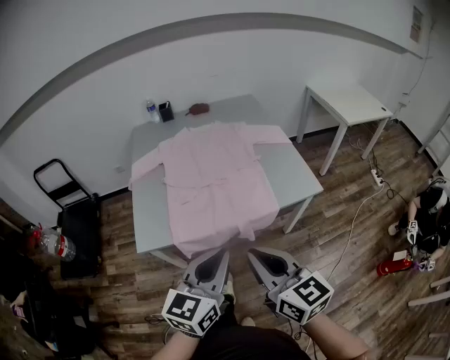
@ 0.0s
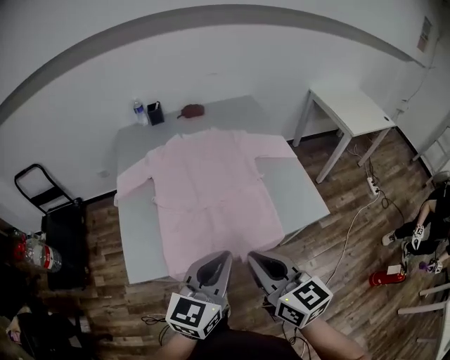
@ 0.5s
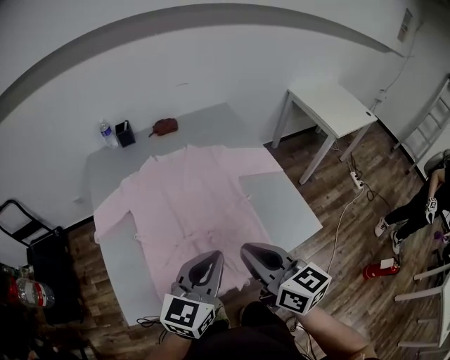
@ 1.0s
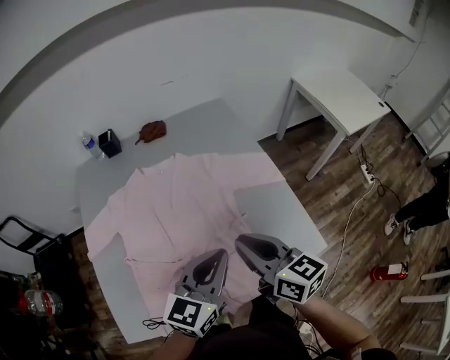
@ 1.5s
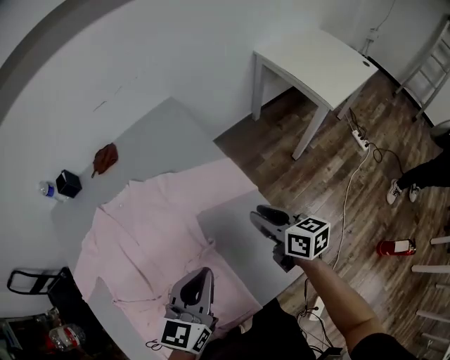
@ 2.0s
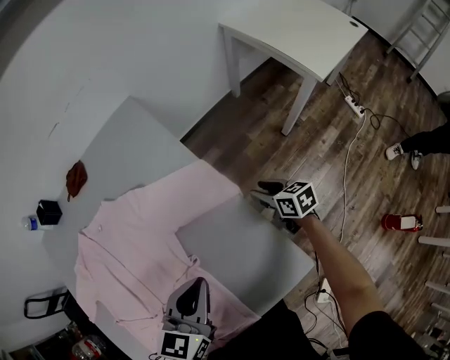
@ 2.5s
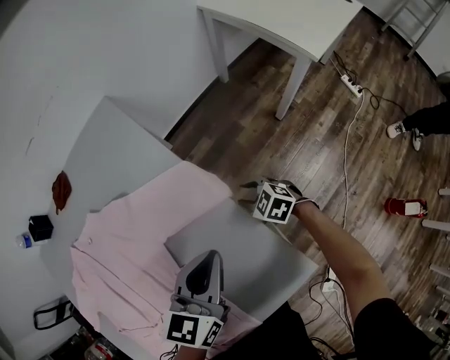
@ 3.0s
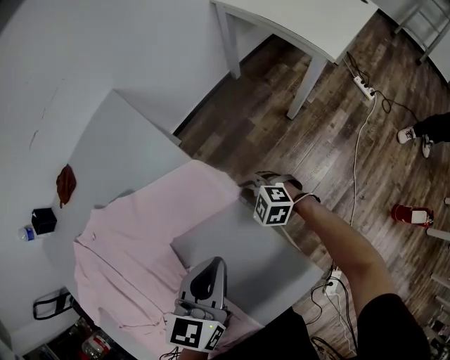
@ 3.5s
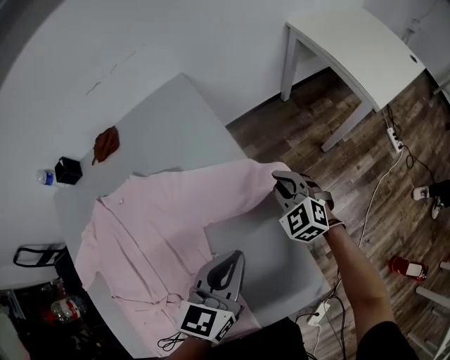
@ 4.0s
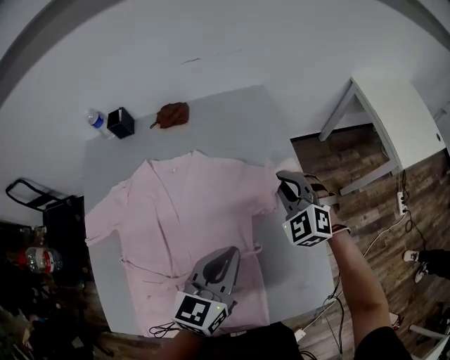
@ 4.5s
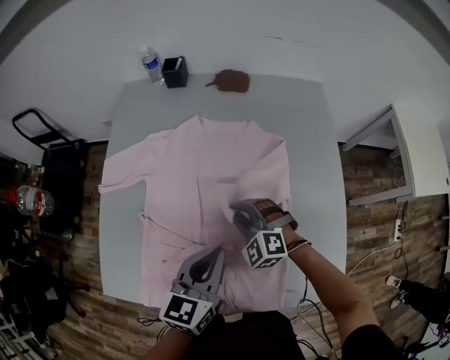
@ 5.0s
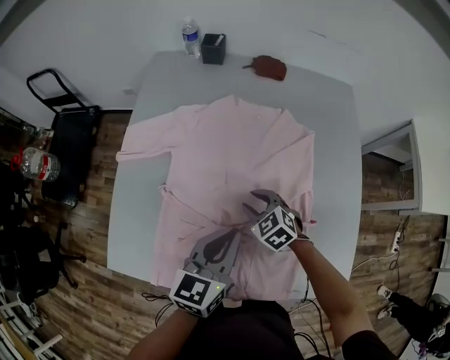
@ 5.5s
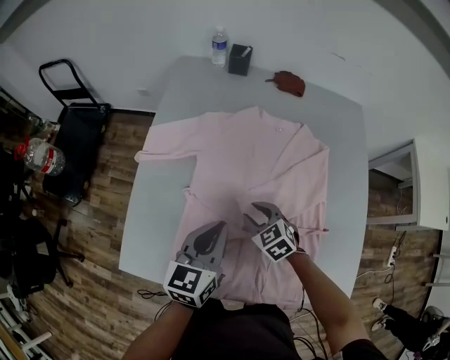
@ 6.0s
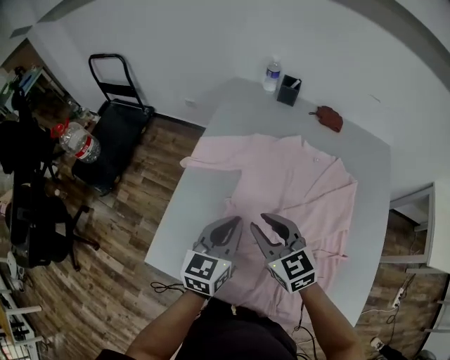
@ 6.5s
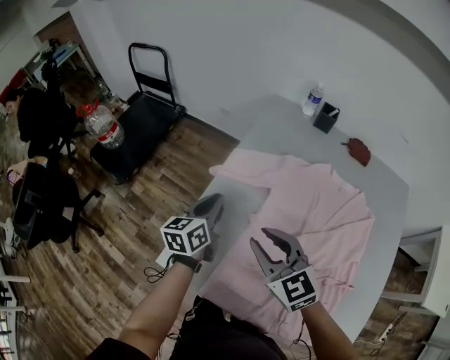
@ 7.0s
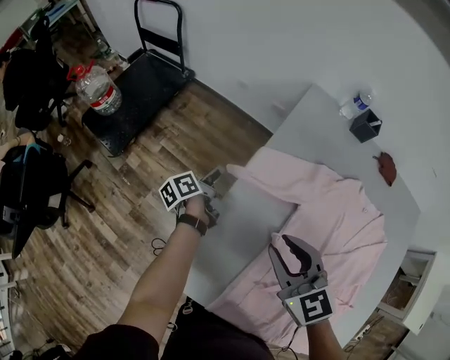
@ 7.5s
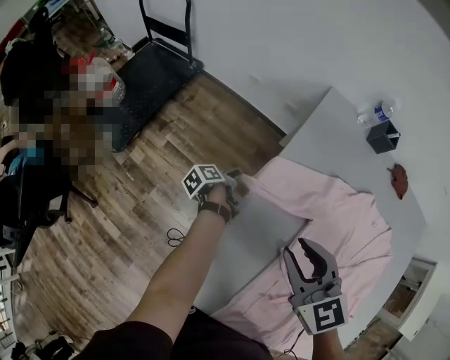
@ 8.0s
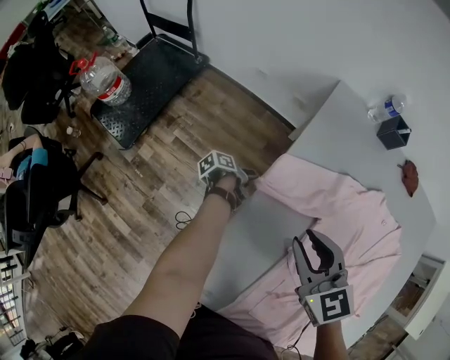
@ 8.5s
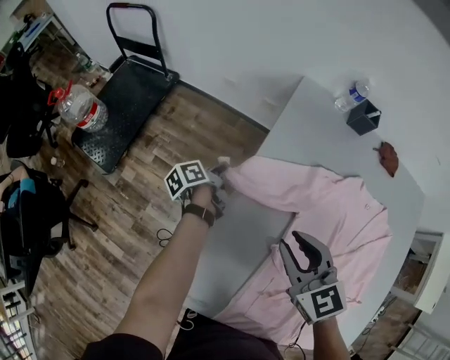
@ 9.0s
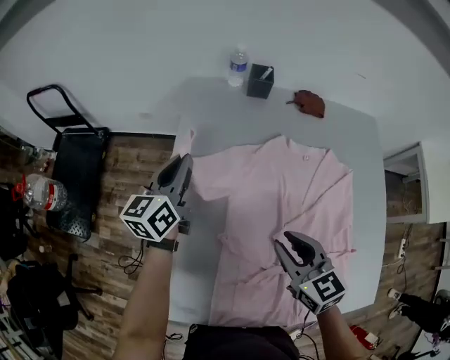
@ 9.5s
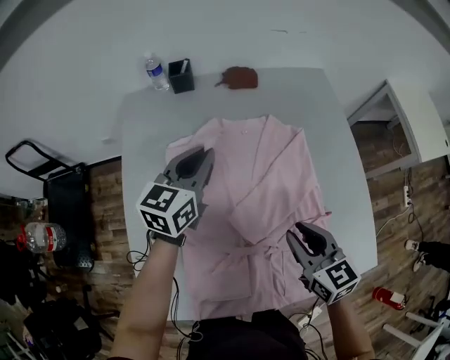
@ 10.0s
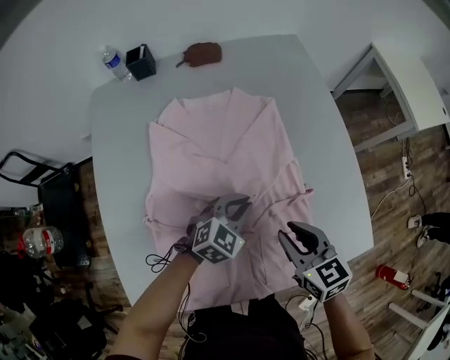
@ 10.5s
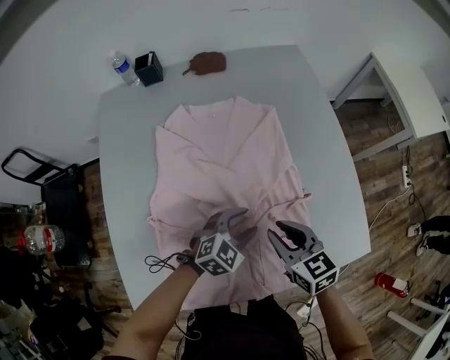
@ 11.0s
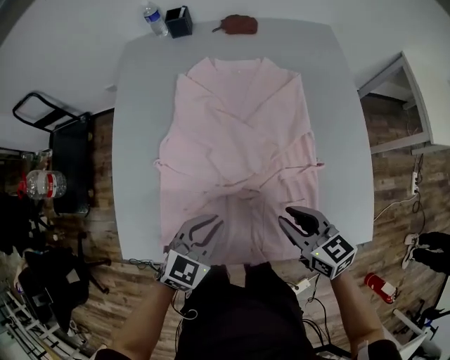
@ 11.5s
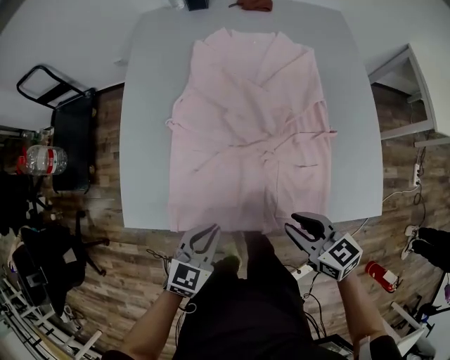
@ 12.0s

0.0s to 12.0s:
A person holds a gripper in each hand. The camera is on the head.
0.0s to 2.0s: Both grippers are carried forward, some 60 cm. The right gripper turns by approximately 30 degrees.
2.0s to 4.0s: The left gripper heads forward, to the right and downward, covering approximately 15 cm. The right gripper goes roughly 20 cm forward and downward, and rotates around the line of its fingers by roughly 60 degrees, counterclockwise from behind.
4.0s to 6.0s: Both grippers are carried roughly 50 cm. The left gripper swivels approximately 40 degrees. The right gripper swivels about 40 degrees, and opens.
6.0s to 8.0s: The right gripper moves to the left, upward and forward, roughly 35 cm, and turns by some 20 degrees. Meanwhile the left gripper heads downward, forward and to the left, covering roughly 50 cm, rotates around the line of its fingers by some 90 degrees, counterclockwise from behind, and opens.
8.0s to 10.0s: The left gripper ends up approximately 50 cm from where it was, rolls clockwise, seen from behind, by about 100 degrees, and closes. Meanwhile the right gripper changes place by about 40 cm, and rotates approximately 50 degrees.
10.0s to 12.0s: The left gripper moves some 50 cm, changes its angle by about 20 degrees, and opens, then closes again. The right gripper shifts by some 25 cm, and swivels roughly 30 degrees.

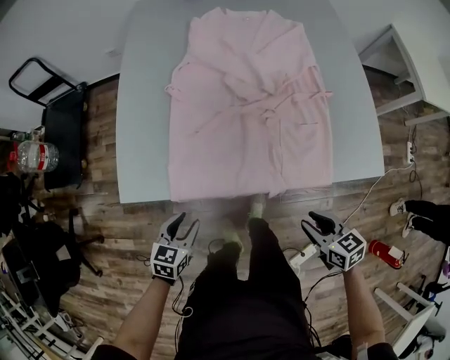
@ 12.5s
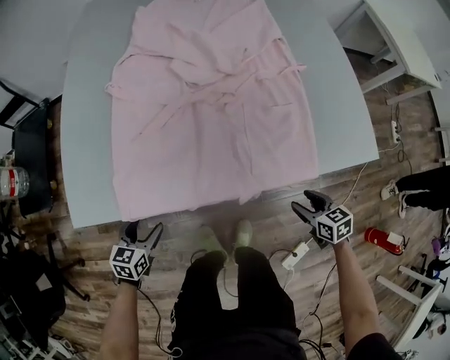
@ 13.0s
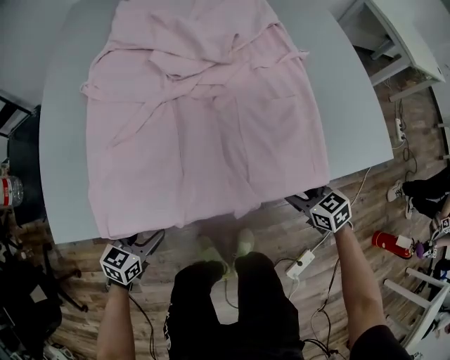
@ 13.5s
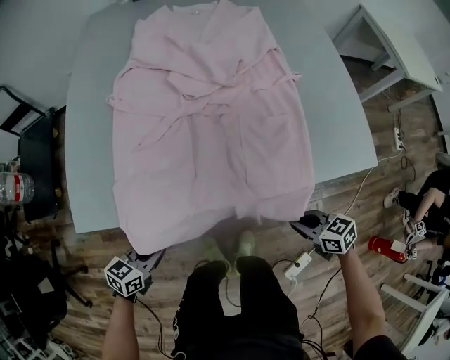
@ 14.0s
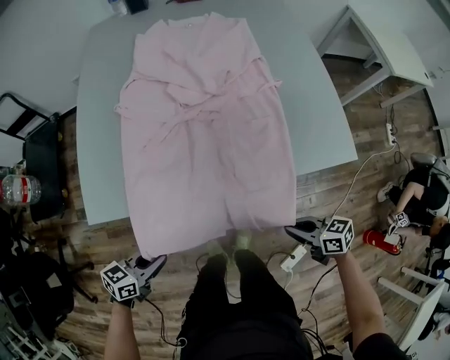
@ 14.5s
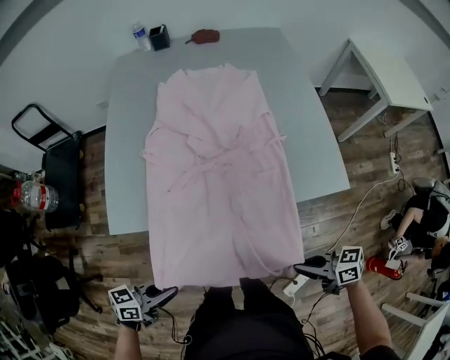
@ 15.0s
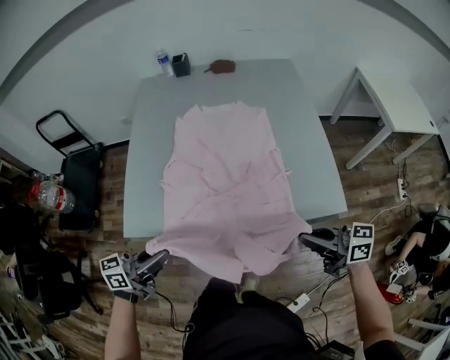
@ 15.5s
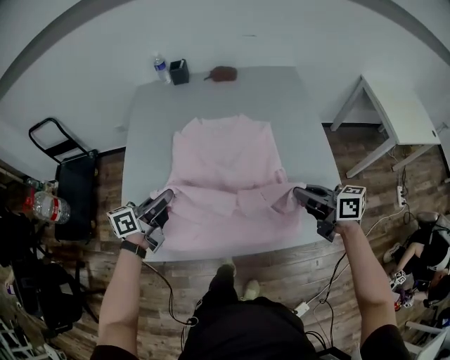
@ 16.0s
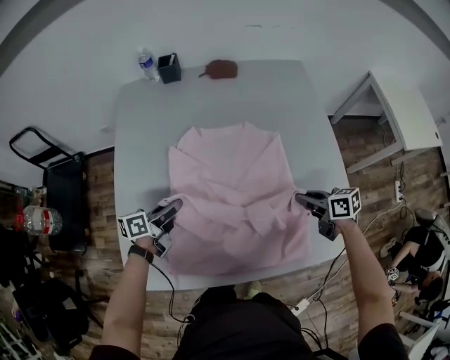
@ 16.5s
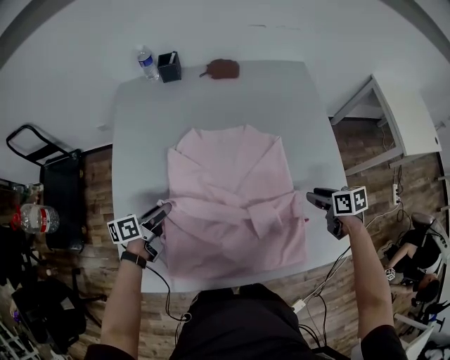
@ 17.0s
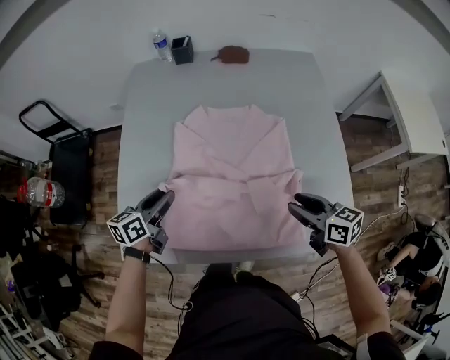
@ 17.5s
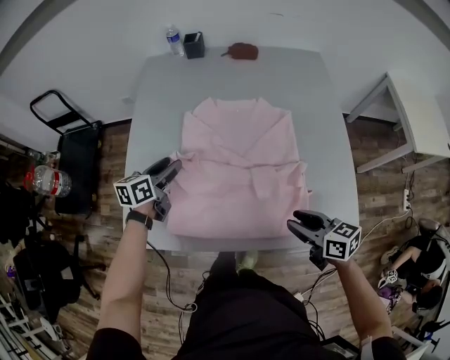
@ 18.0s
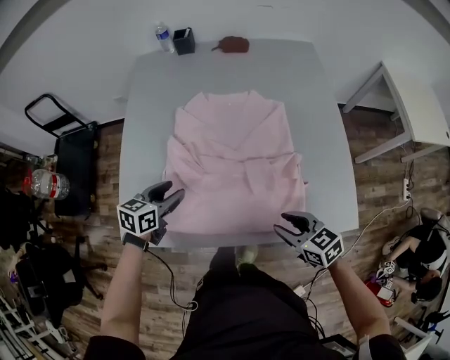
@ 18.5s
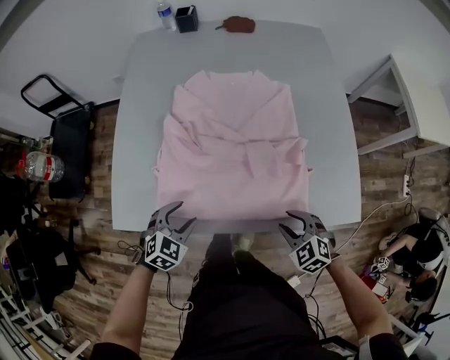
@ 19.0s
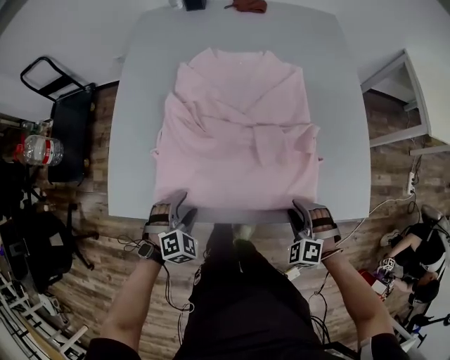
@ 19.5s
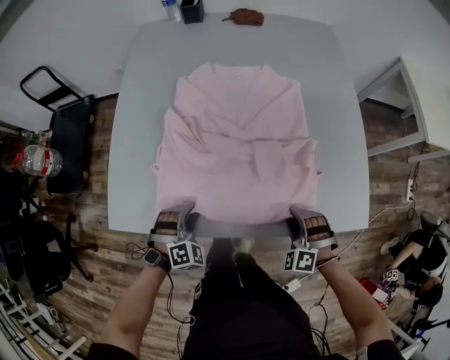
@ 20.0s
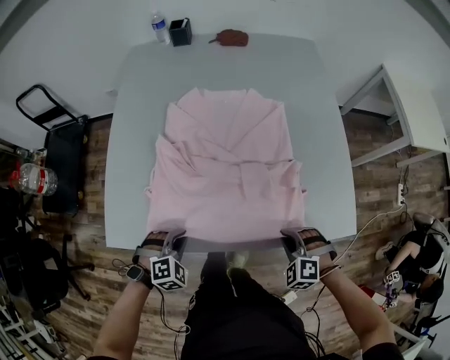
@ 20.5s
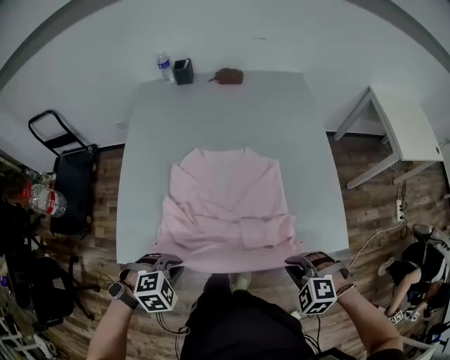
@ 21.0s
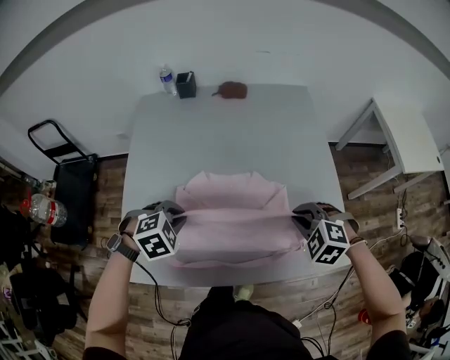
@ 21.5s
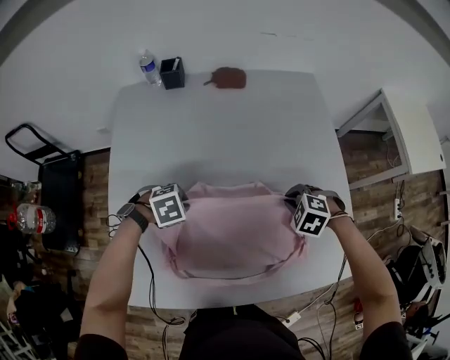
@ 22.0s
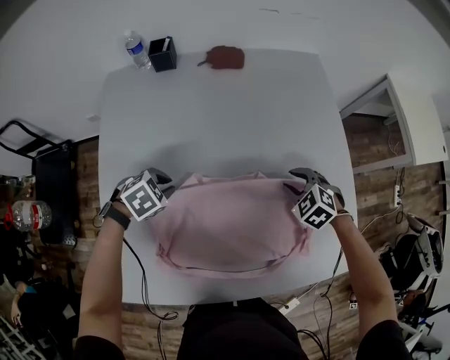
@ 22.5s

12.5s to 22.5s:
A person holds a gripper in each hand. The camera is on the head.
12.5s to 14.5s: The left gripper travels downward and back again, about 15 cm each way, turns by some 30 degrees, and closes. The right gripper goes downward and returns, some 20 cm each way, turns by some 20 degrees, and closes up.
14.5s to 16.5s: The right gripper moves approximately 40 cm. The left gripper ends up about 40 cm from where it was, and rotates some 30 degrees.
16.5s to 18.5s: The right gripper heads backward and to the left, covering about 20 cm, changes its angle by some 30 degrees, and opens its fingers; the left gripper swings forward and backward, approximately 10 cm each way, with 2 reversals, turns by approximately 30 degrees, and opens its fingers.
18.5s to 20.5s: The right gripper travels downward by some 10 cm, rolls counterclockwise, seen from behind, by some 50 degrees, and closes up. The left gripper shifts about 20 cm backward and downward, twists approximately 60 degrees clockwise, seen from behind, and closes.
20.5s to 22.5s: The left gripper reaches approximately 15 cm upward, then returns, and rotates about 30 degrees. The right gripper reaches some 15 cm upward, then returns, changes its angle by roughly 20 degrees, and opens its fingers.

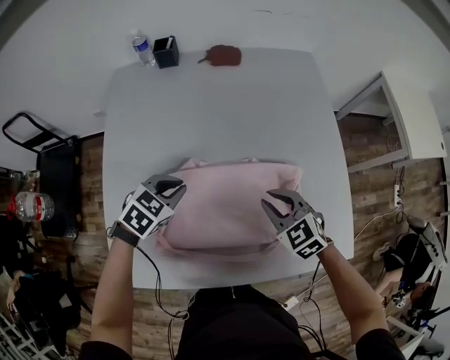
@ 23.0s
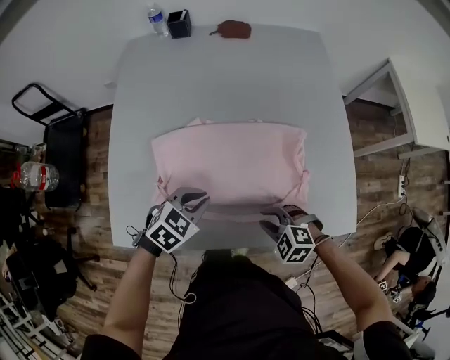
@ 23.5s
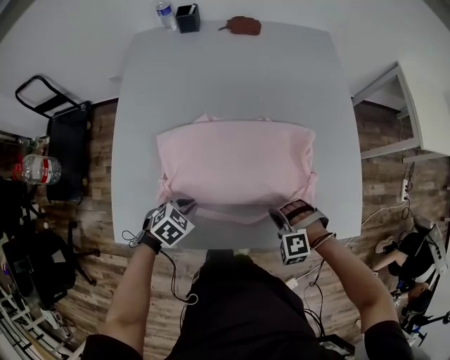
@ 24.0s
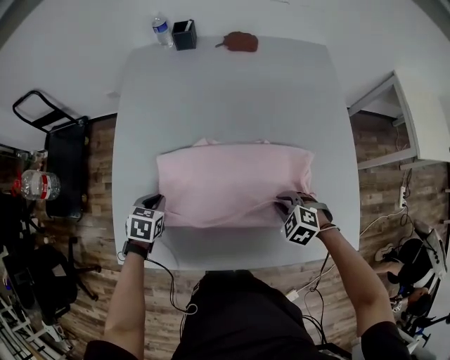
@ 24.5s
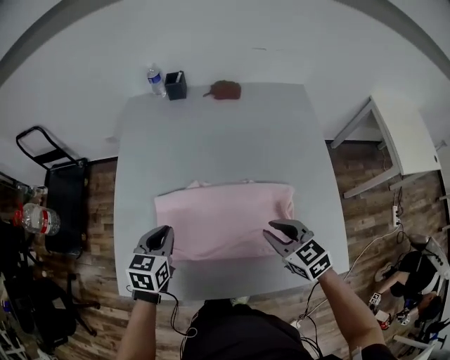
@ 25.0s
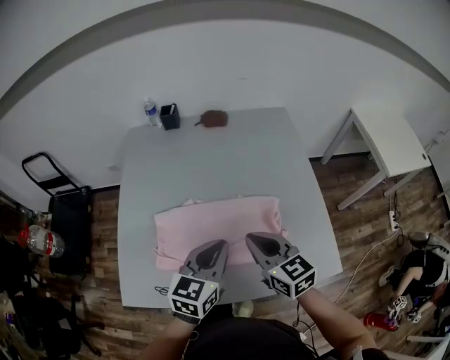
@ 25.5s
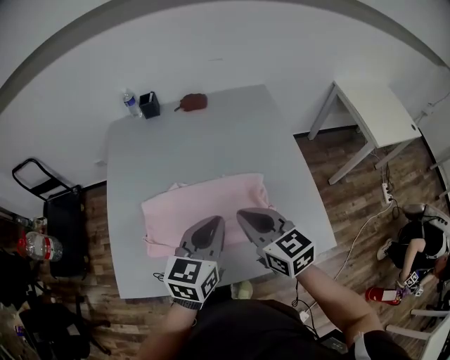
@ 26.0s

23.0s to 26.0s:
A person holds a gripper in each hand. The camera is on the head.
23.0s to 24.5s: The right gripper is displaced downward and backward by roughly 15 cm, and swivels about 30 degrees. Meanwhile the left gripper heads to the left, downward and backward, covering about 20 cm, and rotates roughly 40 degrees.
24.5s to 26.0s: The left gripper moves upward and to the right, roughly 40 cm, and points its fingers roughly 40 degrees further upward; the right gripper goes approximately 30 cm upward, and tilts its fingers about 50 degrees upward.

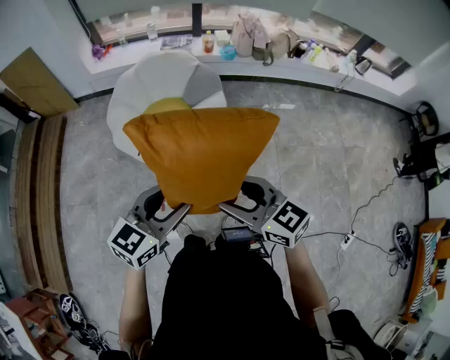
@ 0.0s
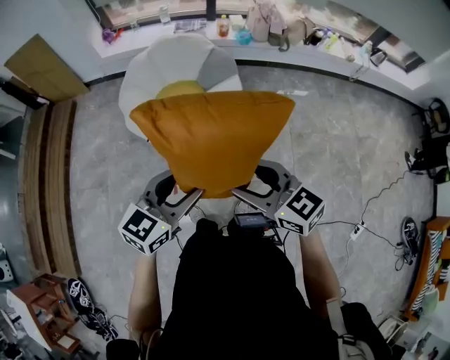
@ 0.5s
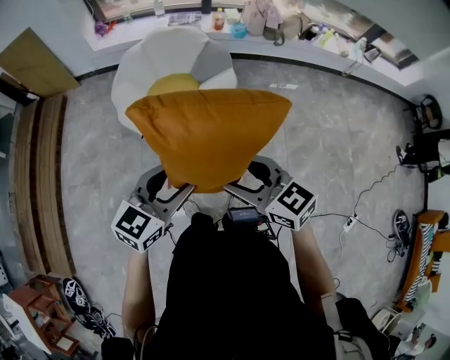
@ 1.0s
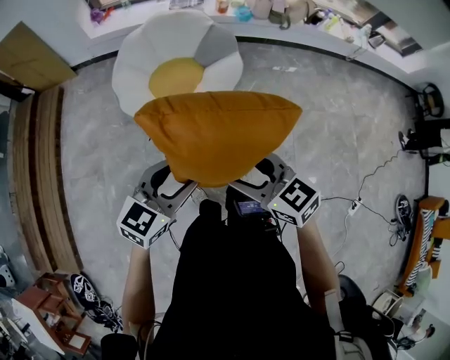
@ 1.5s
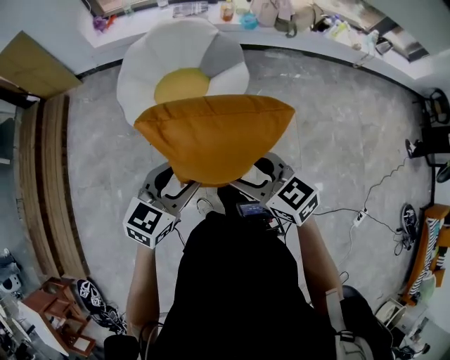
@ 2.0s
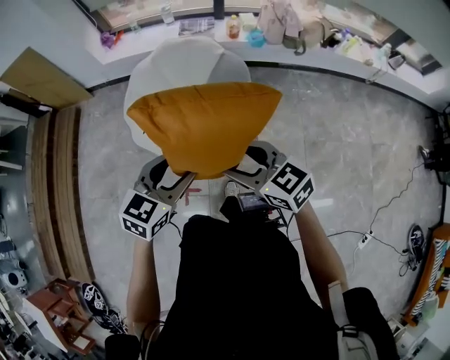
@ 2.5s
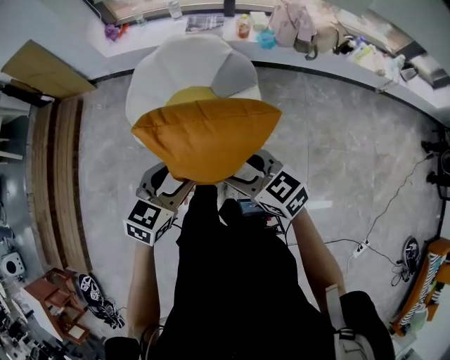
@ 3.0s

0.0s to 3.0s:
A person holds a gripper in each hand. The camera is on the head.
0.0s to 1.5s: Both grippers move to the left, about 10 cm.
1.5s to 3.0s: The two grippers go some 25 cm forward.
